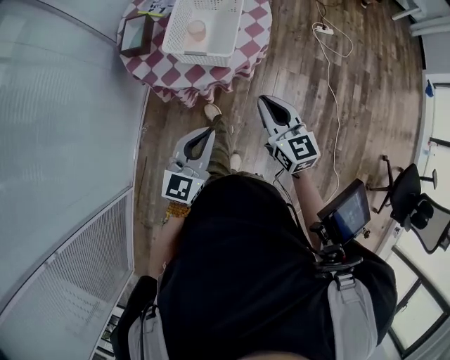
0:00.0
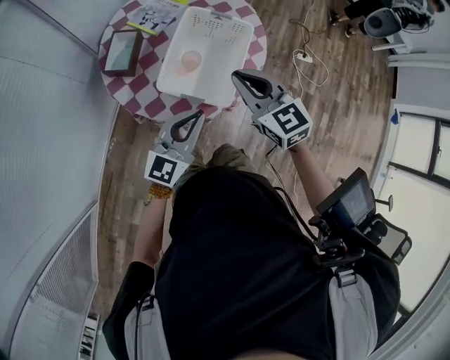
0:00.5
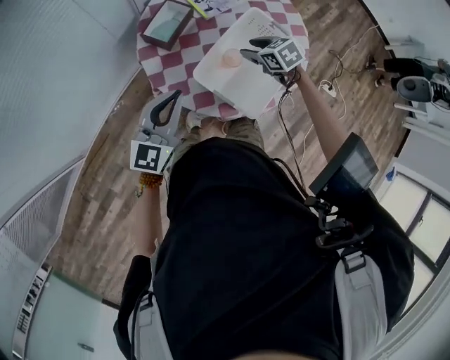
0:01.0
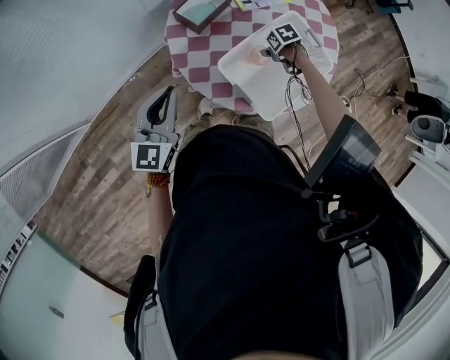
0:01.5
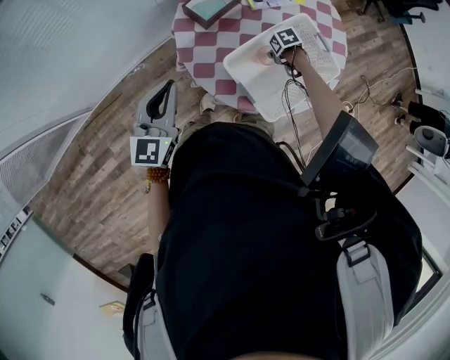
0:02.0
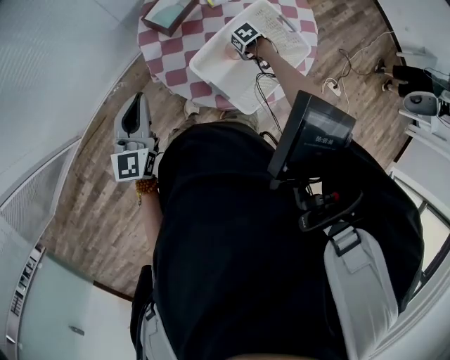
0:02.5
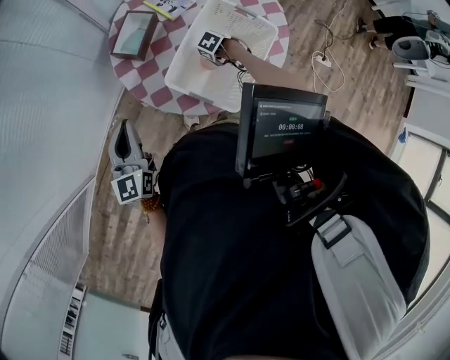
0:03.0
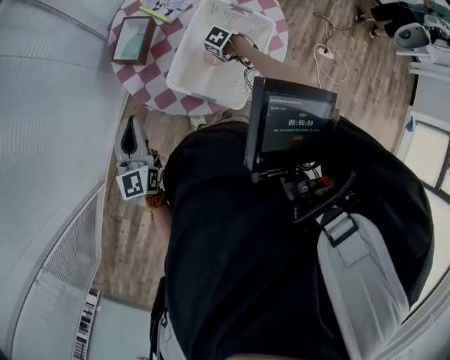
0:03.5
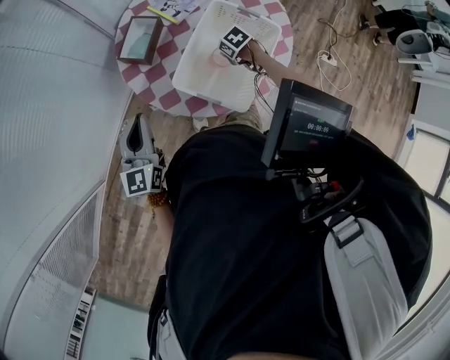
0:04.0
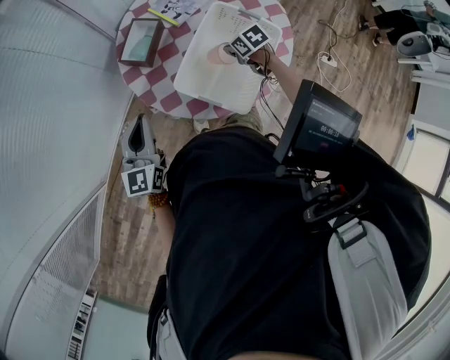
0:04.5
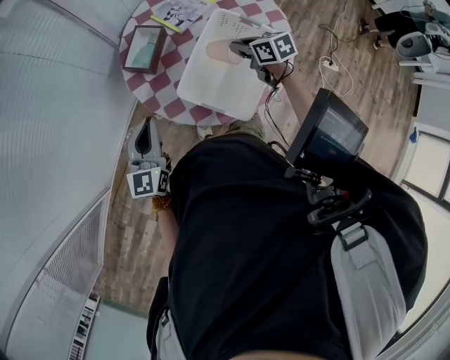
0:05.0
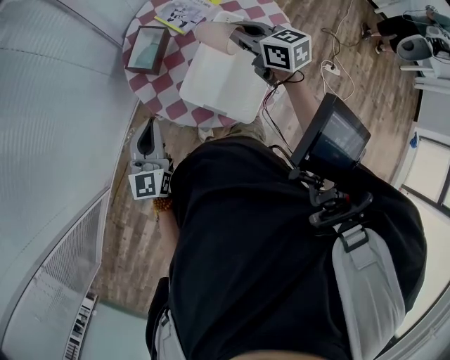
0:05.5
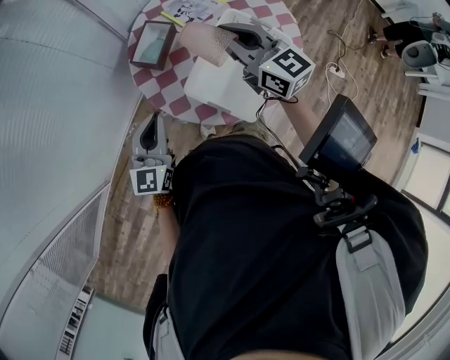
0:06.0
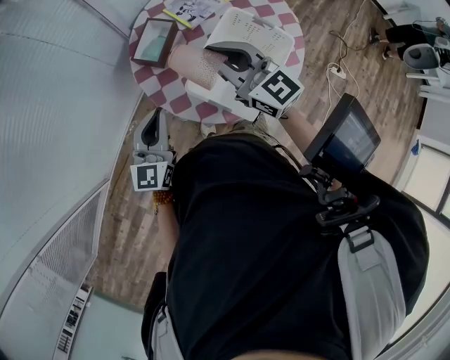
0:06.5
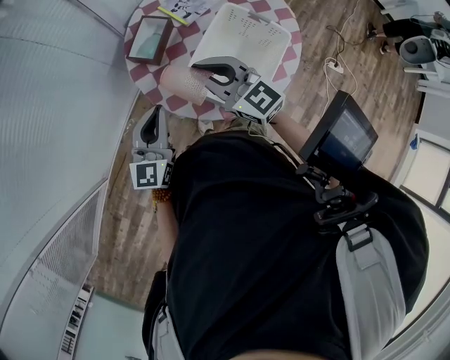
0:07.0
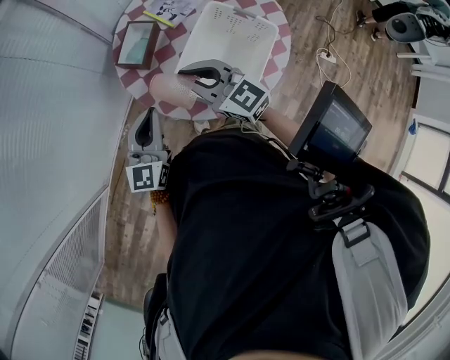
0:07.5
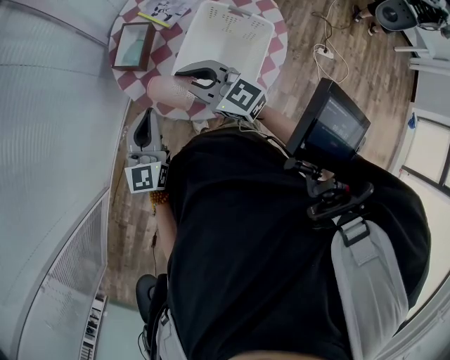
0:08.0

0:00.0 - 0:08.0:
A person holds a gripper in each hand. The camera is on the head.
0:00.0 - 0:02.0: The right gripper changes place by approximately 60 cm, angles its fingers downward, by some 70 degrees, and opens; the left gripper shifts by about 30 cm, and turns by some 50 degrees.
0:02.0 - 0:04.0: The right gripper changes place by approximately 5 cm, and closes its fingers.
0:04.0 - 0:06.0: The right gripper is displaced upward by approximately 35 cm, and tilts its fingers approximately 70 degrees upward.
0:06.0 - 0:08.0: The right gripper moves to the left, downward and backward, approximately 15 cm.

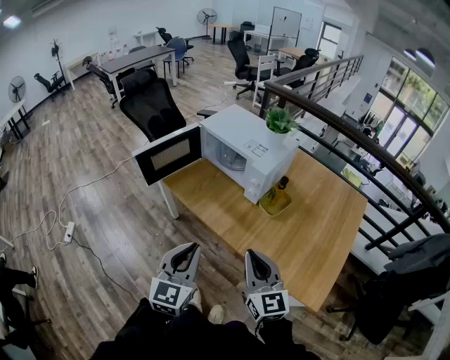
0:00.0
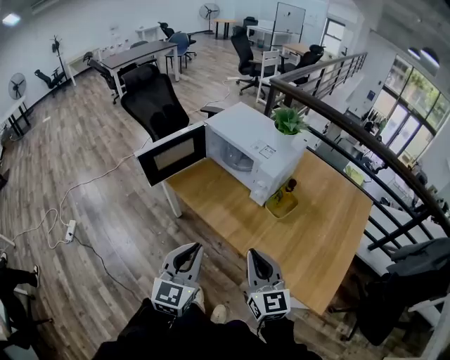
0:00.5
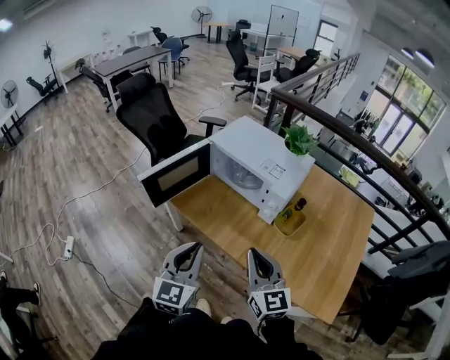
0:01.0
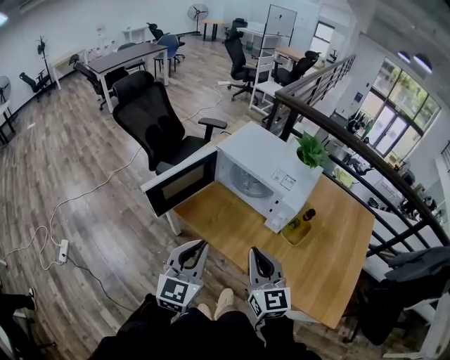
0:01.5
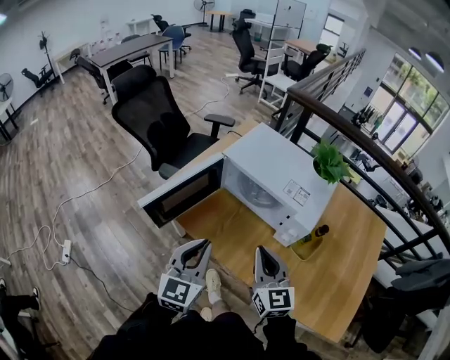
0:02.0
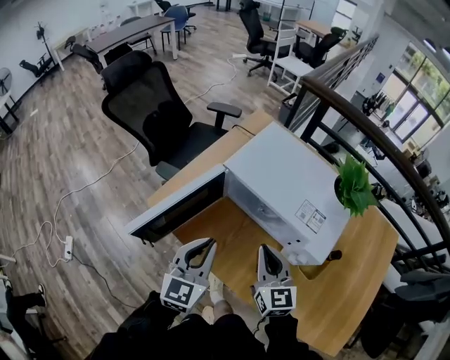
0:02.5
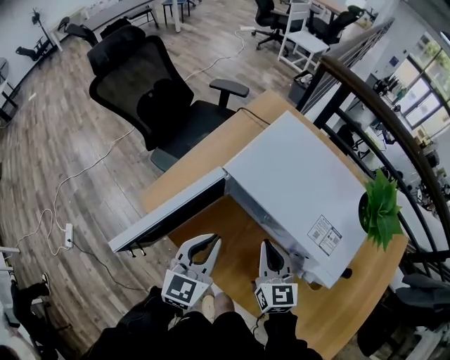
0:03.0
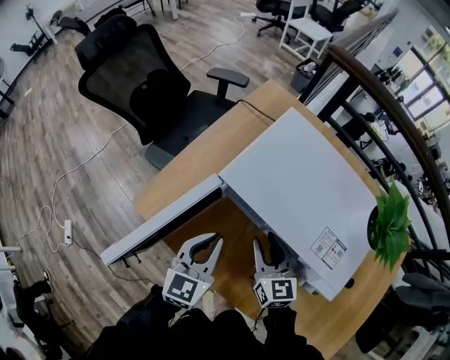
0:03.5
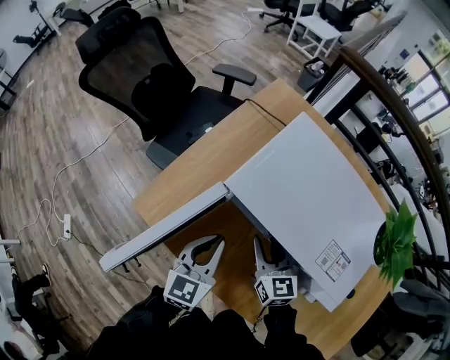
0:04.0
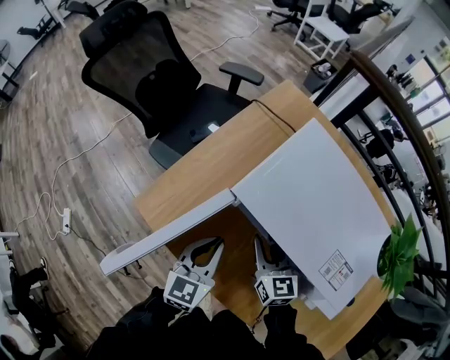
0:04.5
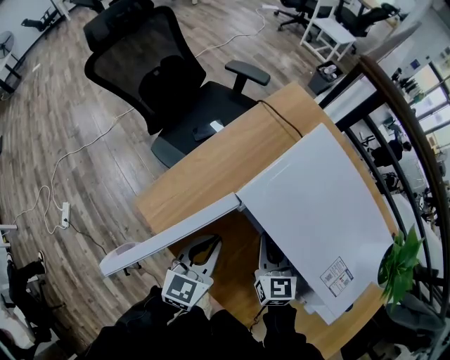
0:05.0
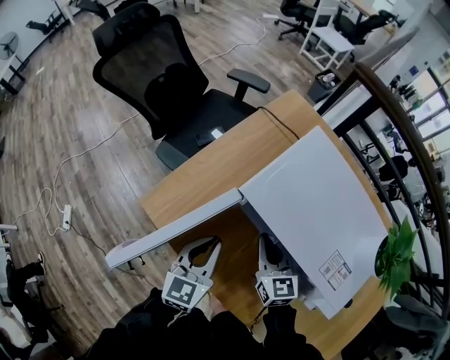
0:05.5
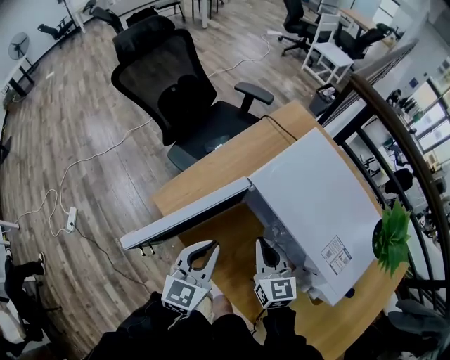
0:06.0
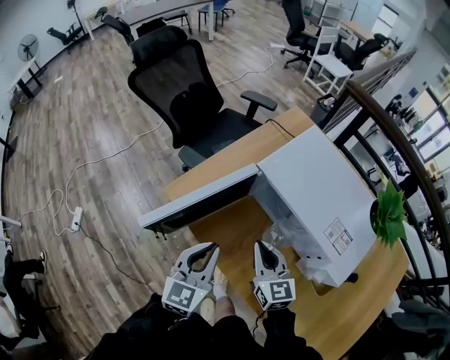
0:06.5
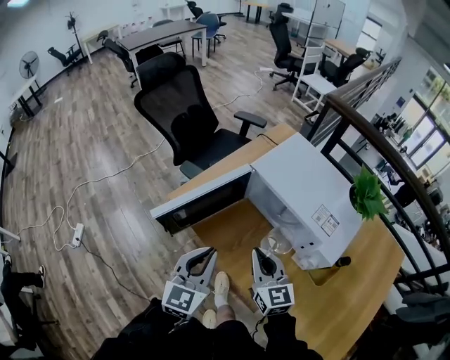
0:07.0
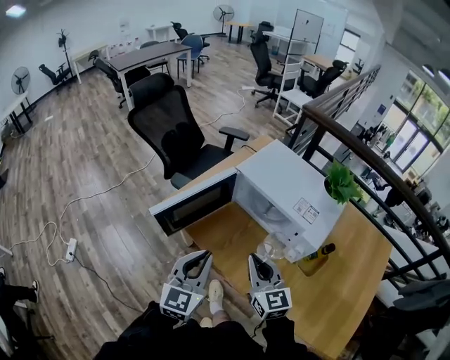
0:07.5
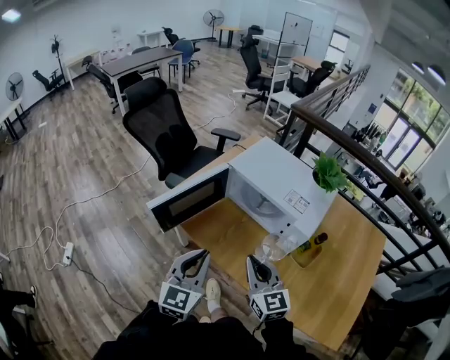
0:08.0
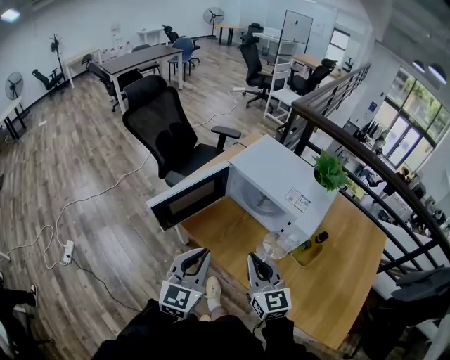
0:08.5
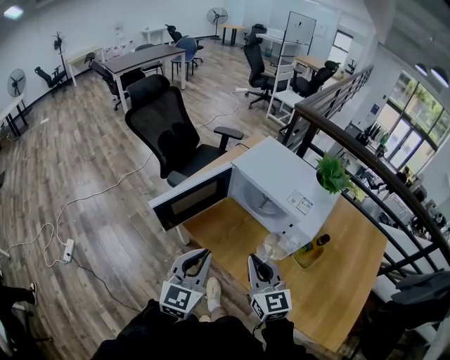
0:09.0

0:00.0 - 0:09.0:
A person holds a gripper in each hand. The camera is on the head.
0:00.0 - 0:02.0: Both grippers move forward and to the left, about 30 cm.
0:02.0 - 0:04.5: The grippers both shift forward and downward by some 35 cm. The right gripper opens.
0:04.5 - 0:07.0: The two grippers go about 25 cm backward and upward. The right gripper closes up.
0:07.0 - 0:09.0: The right gripper travels backward and upward by approximately 15 cm; the left gripper moves backward, roughly 10 cm.

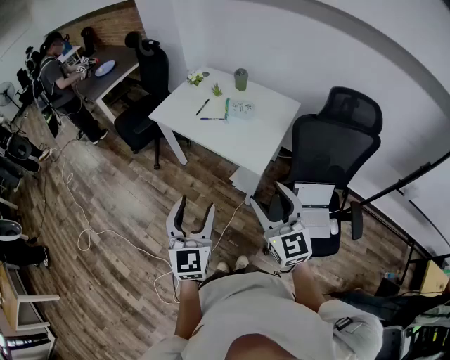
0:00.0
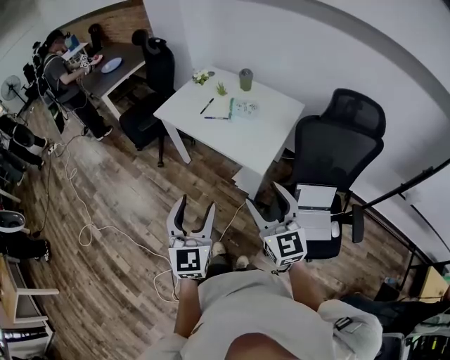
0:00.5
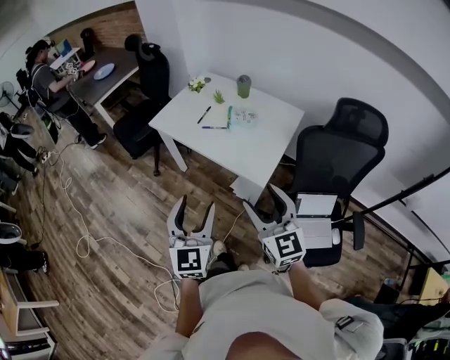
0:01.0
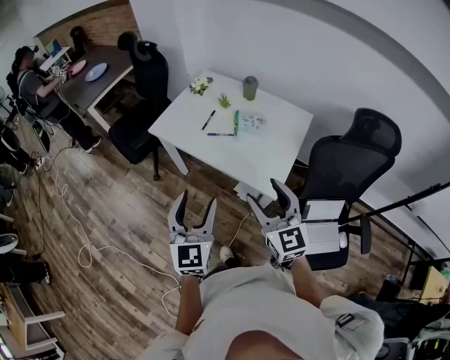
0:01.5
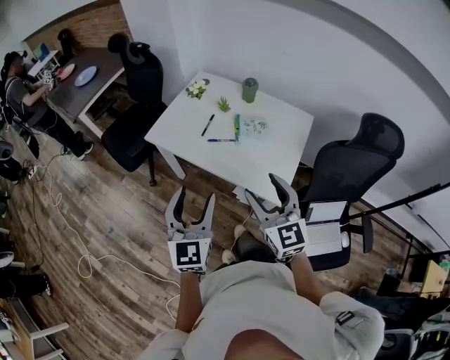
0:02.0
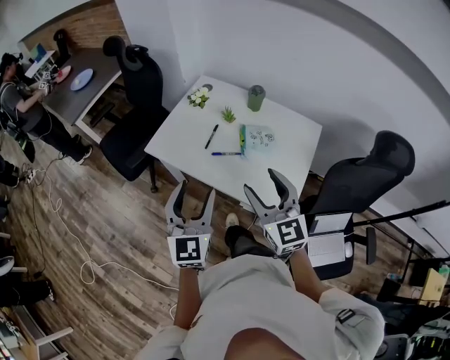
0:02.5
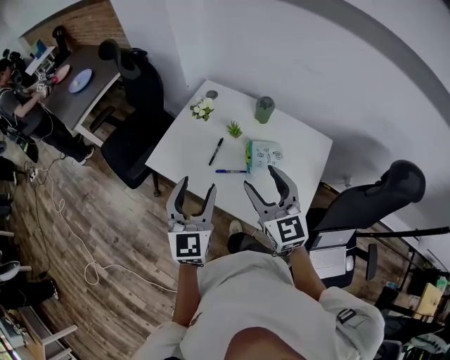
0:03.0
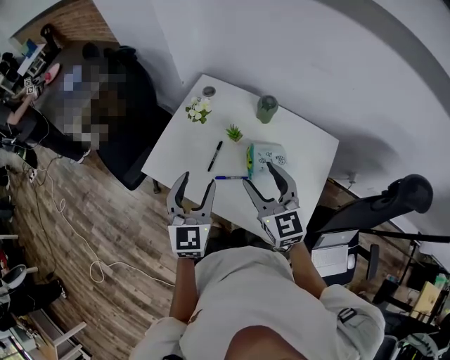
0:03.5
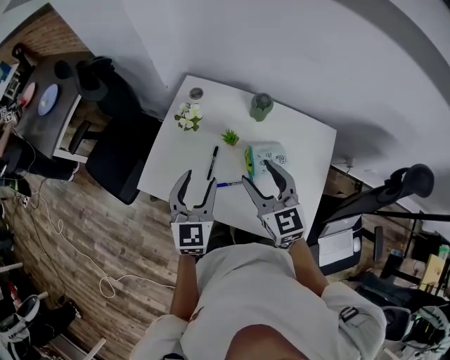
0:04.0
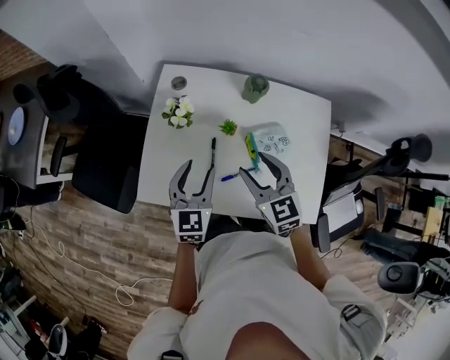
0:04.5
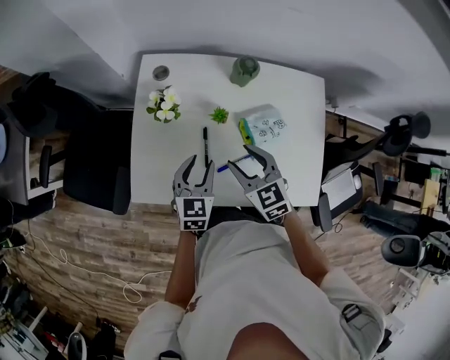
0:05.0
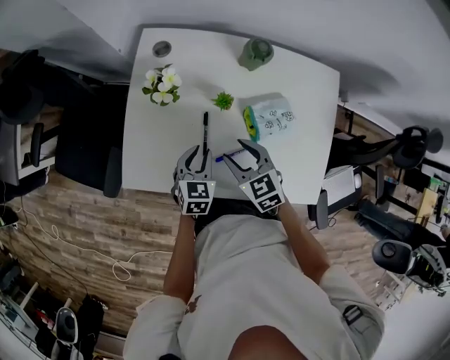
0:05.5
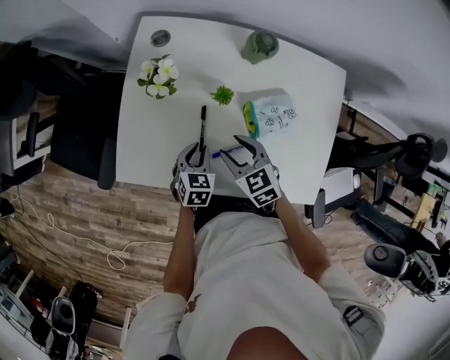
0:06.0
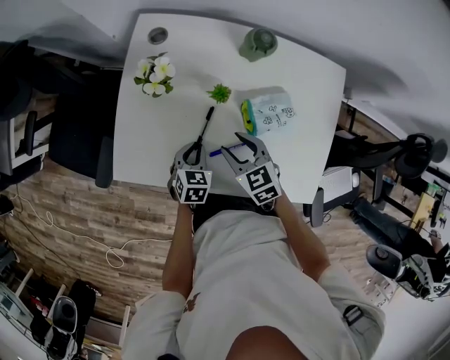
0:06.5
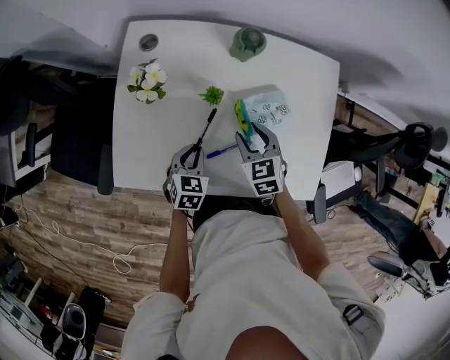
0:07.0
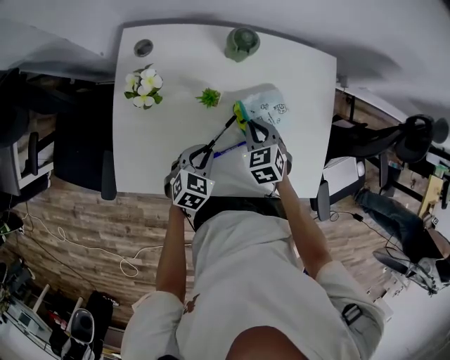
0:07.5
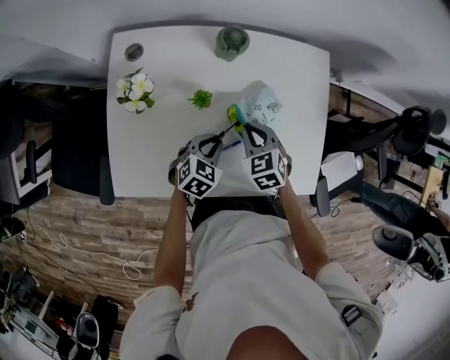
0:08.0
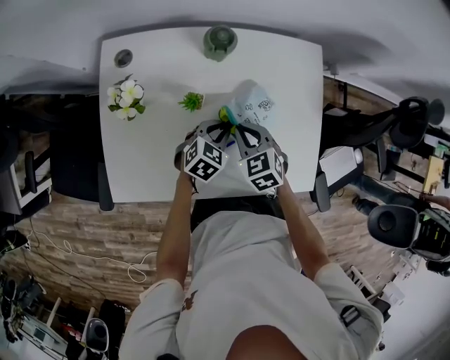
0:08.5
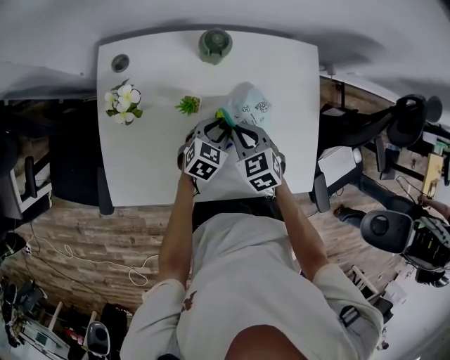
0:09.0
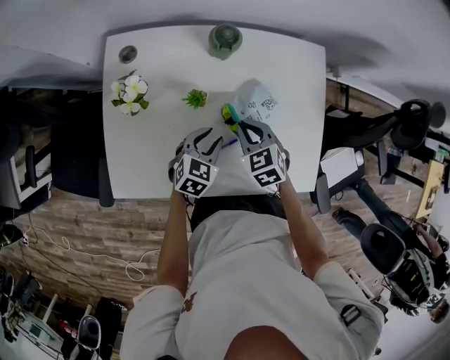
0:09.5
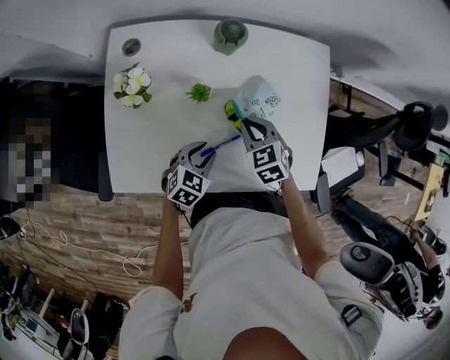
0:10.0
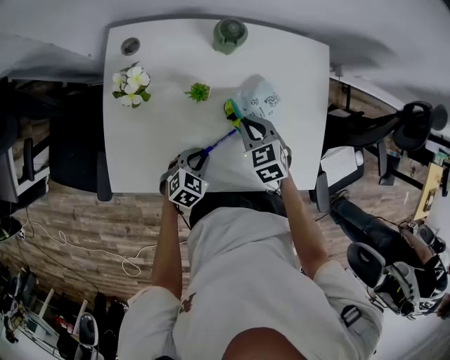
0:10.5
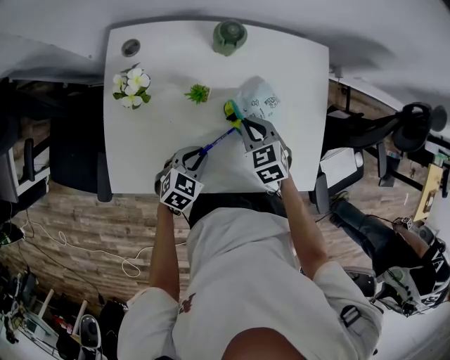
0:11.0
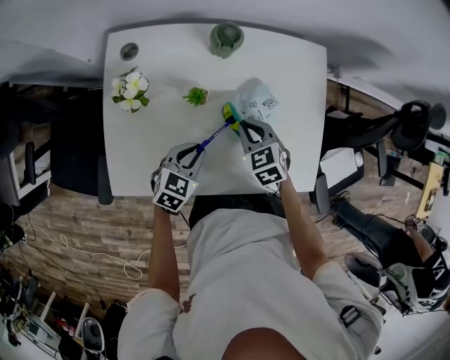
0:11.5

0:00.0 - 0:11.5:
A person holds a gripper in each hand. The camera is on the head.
0:00.0 - 0:02.0: Both grippers travel together forward, some 25 cm.
0:02.0 - 0:04.0: Both grippers travel together forward, about 35 cm.
0:04.0 - 0:06.0: Both grippers move downward, some 25 cm. The left gripper tips its fingers downward by approximately 40 degrees, and closes its fingers, while the right gripper rotates approximately 30 degrees.
0:06.0 - 0:07.5: The left gripper moves about 5 cm, and rotates about 20 degrees. The right gripper changes place by some 10 cm, rotates approximately 20 degrees, and closes its fingers.
0:07.5 - 0:09.5: The left gripper shifts roughly 5 cm forward.
